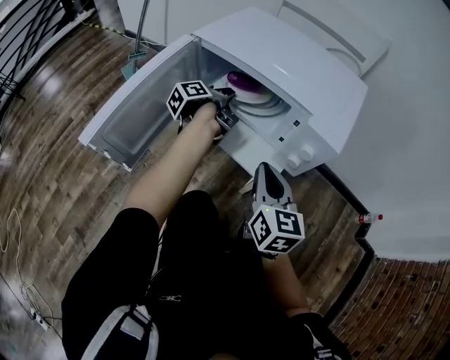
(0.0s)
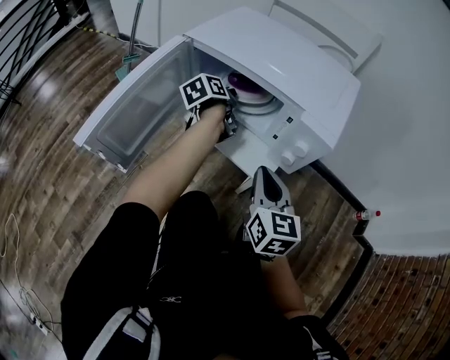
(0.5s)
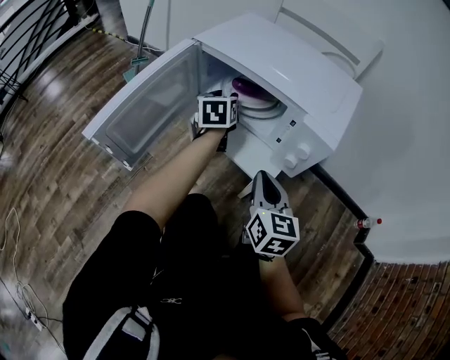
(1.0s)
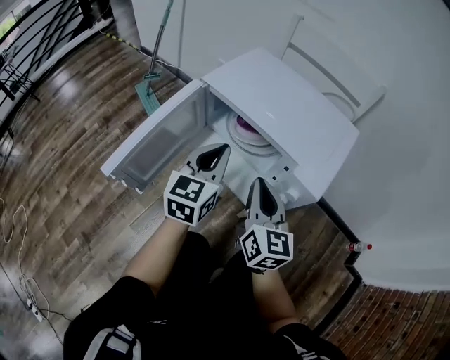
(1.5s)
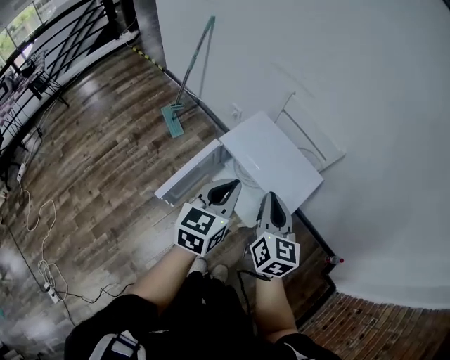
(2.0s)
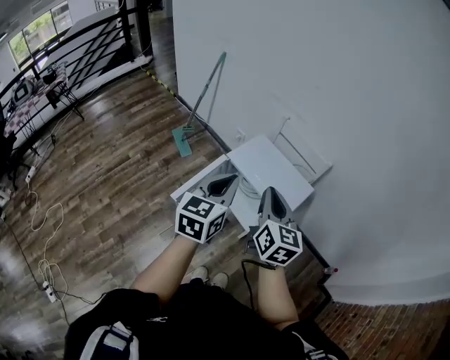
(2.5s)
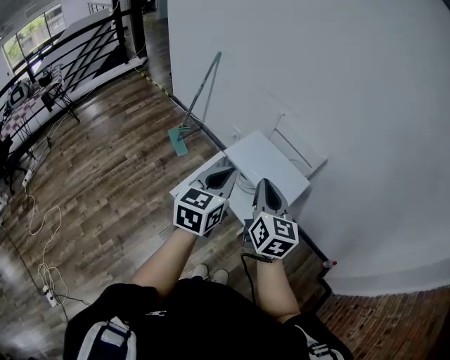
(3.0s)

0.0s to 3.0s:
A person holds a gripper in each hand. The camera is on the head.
0.0s to 1.5s: The right gripper is displaced upward by roughly 10 cm.
1.5s to 3.0s: The right gripper is displaced upward by some 40 cm.

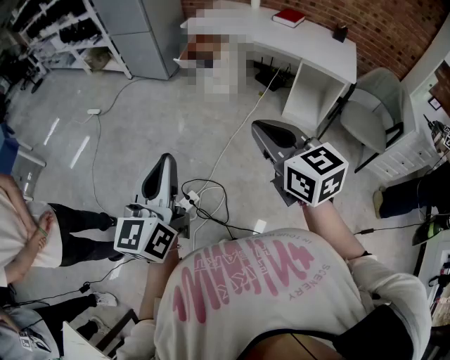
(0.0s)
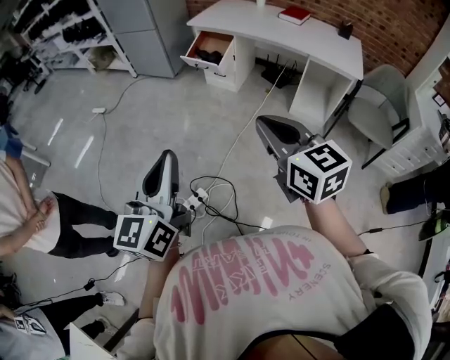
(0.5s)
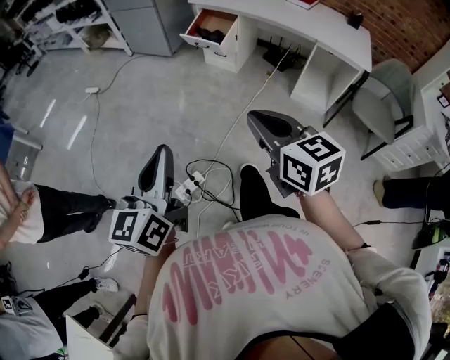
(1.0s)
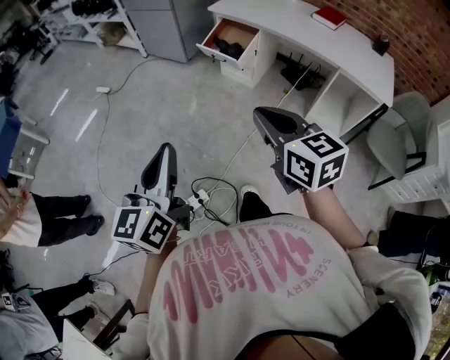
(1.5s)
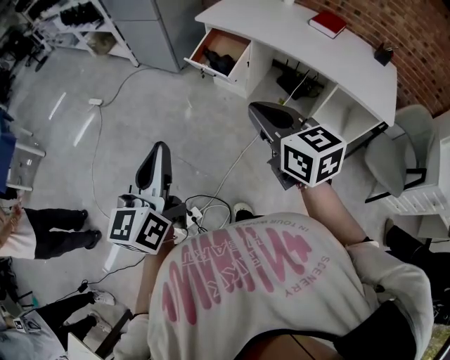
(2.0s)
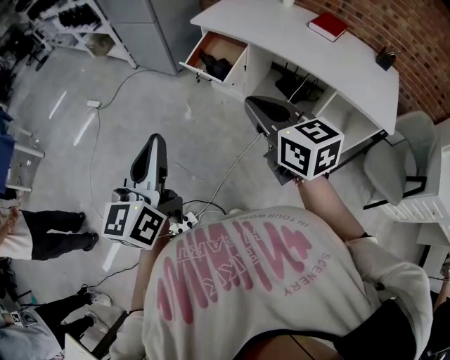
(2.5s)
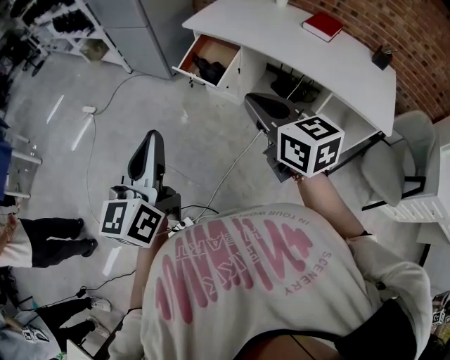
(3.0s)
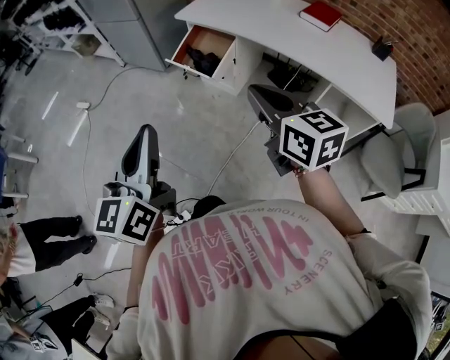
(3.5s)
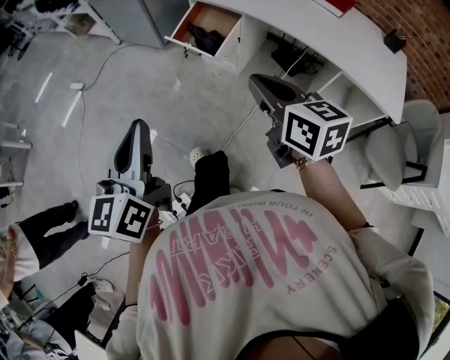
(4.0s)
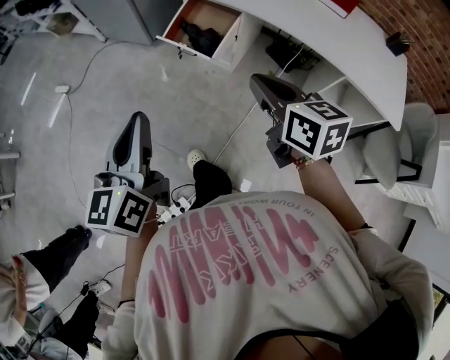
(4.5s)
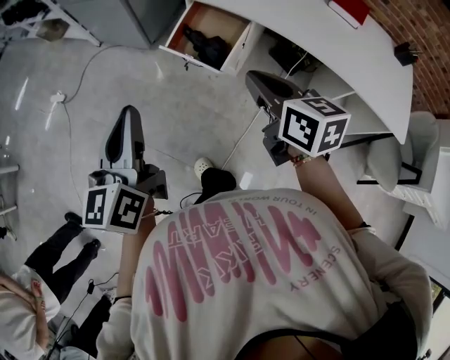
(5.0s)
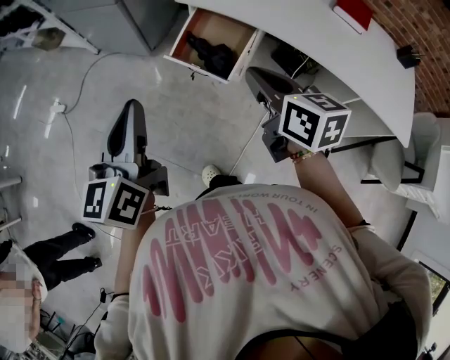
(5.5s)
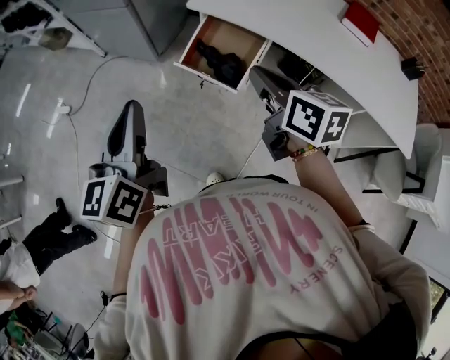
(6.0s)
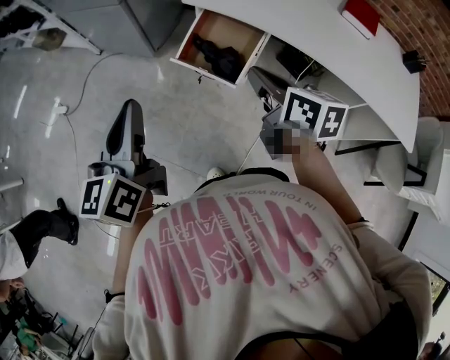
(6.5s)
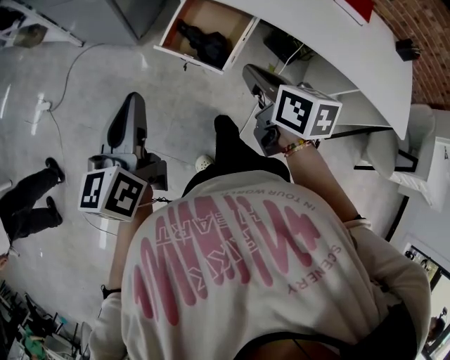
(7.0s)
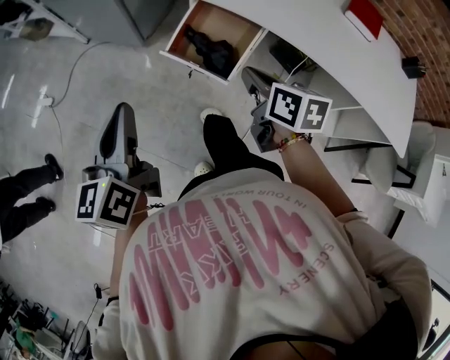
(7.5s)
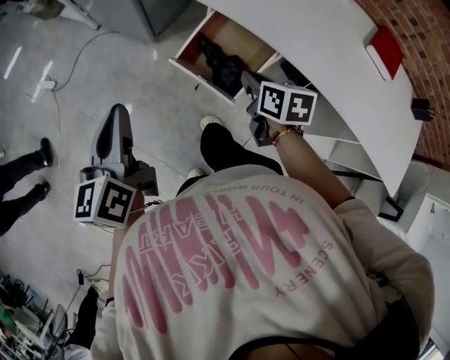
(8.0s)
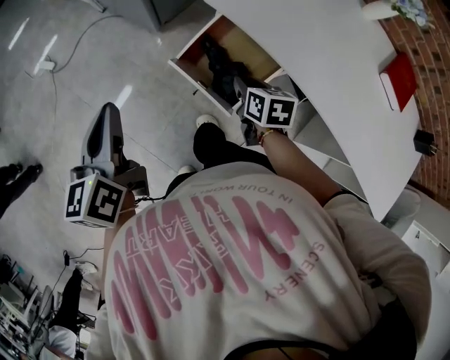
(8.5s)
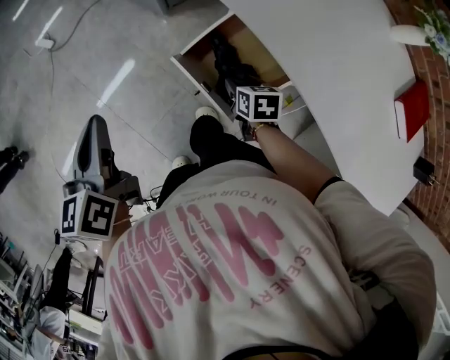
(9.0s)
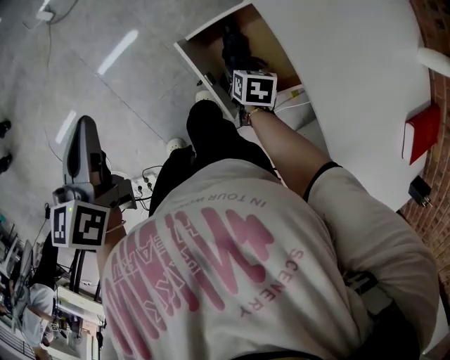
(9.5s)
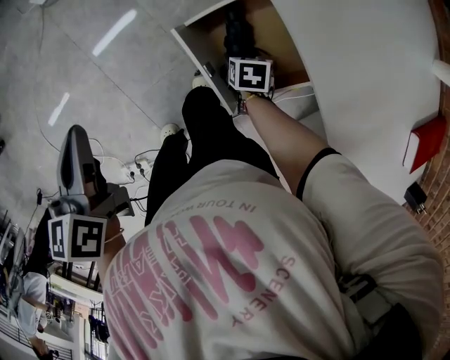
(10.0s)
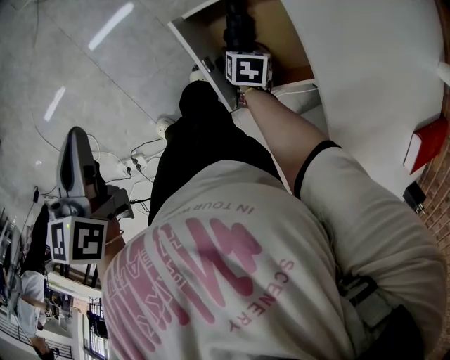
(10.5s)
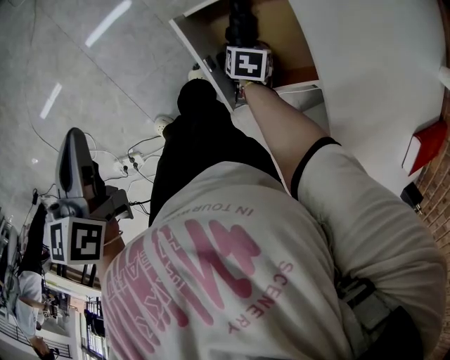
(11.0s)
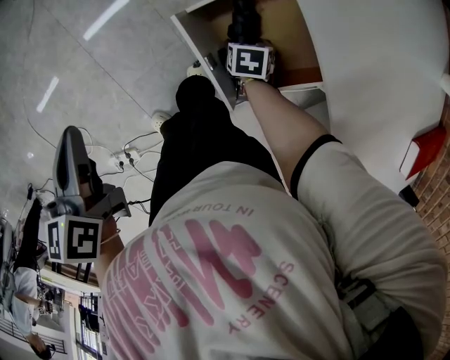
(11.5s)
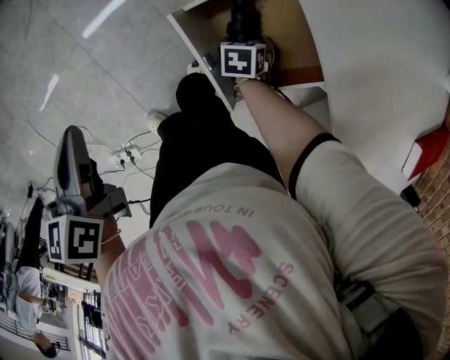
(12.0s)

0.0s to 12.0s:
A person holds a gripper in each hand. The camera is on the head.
0.0s to 2.0s: The grippers both shift forward by roughly 30 cm.
2.0s to 4.0s: The right gripper moves forward, to the right and downward, roughly 15 cm. The left gripper goes about 10 cm forward.
4.0s to 6.0s: Both grippers move forward, approximately 35 cm.
6.0s to 8.0s: The right gripper moves downward and forward, about 20 cm, and turns by roughly 20 degrees. Meanwhile the left gripper is displaced forward and downward by about 15 cm.
8.0s to 10.0s: The right gripper heads downward and forward, covering some 35 cm, tips its fingers downward by approximately 30 degrees, and opens up; the left gripper moves downward and forward, roughly 15 cm, and rotates approximately 30 degrees.
10.0s to 12.0s: The left gripper moves downward, some 5 cm.

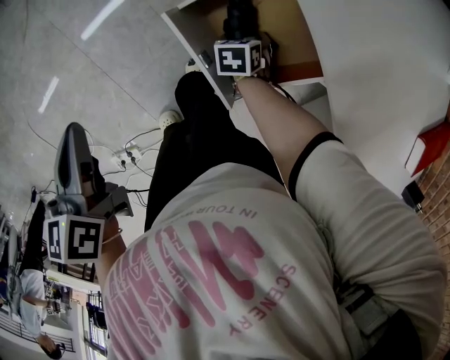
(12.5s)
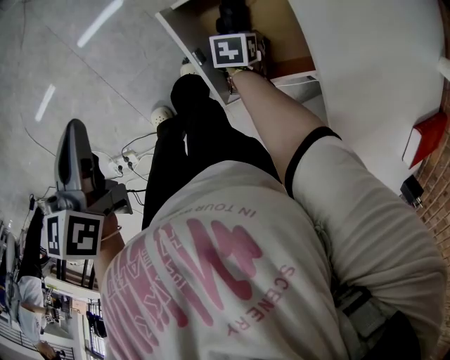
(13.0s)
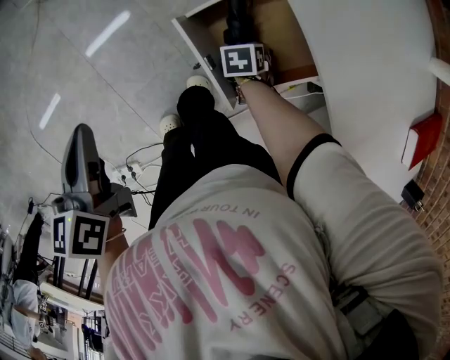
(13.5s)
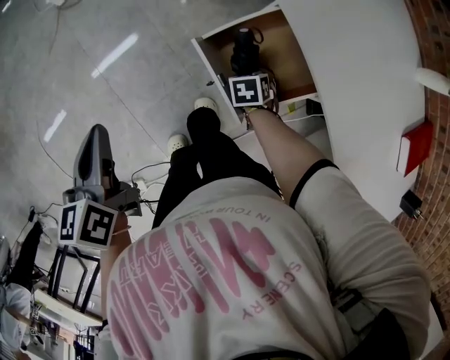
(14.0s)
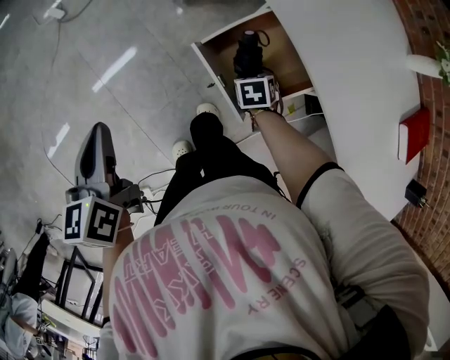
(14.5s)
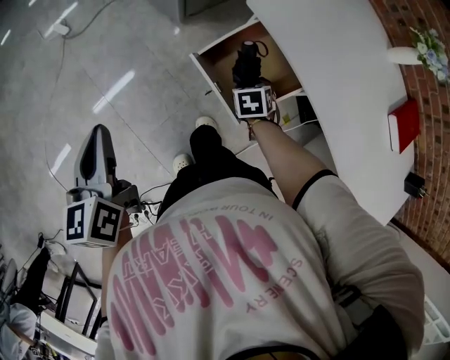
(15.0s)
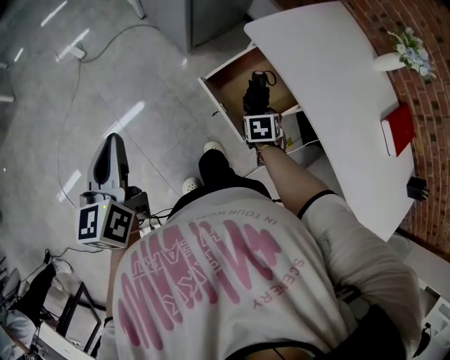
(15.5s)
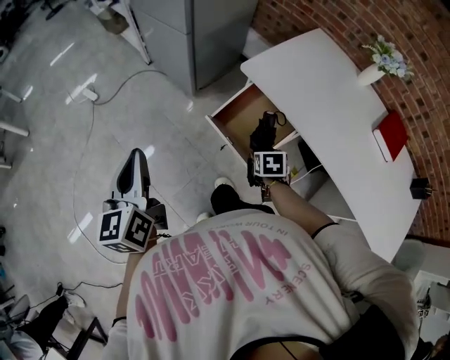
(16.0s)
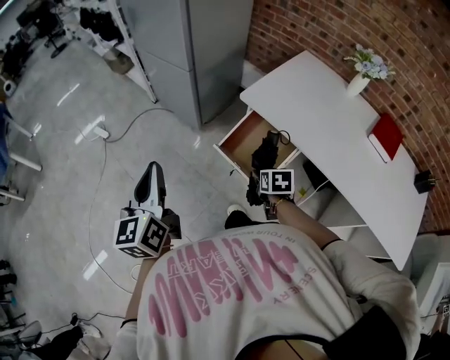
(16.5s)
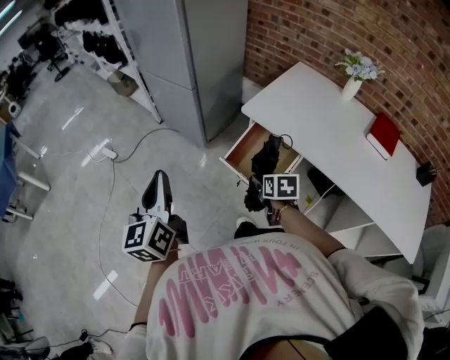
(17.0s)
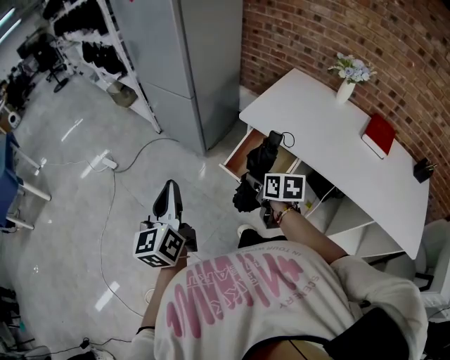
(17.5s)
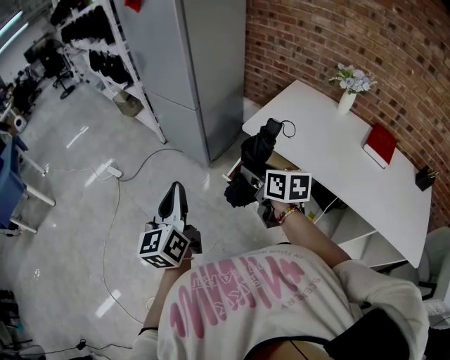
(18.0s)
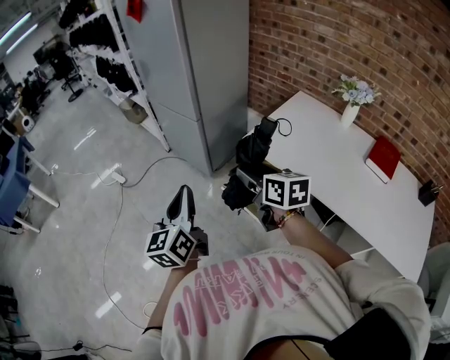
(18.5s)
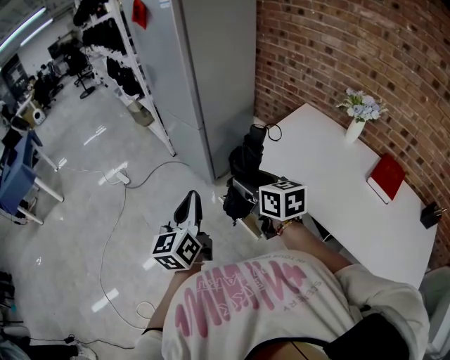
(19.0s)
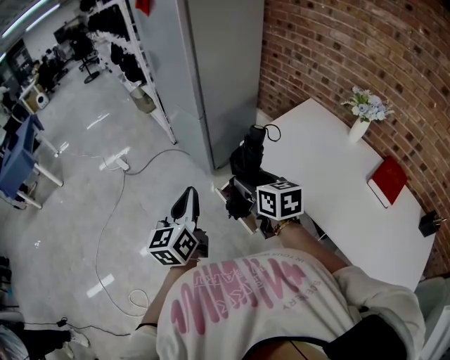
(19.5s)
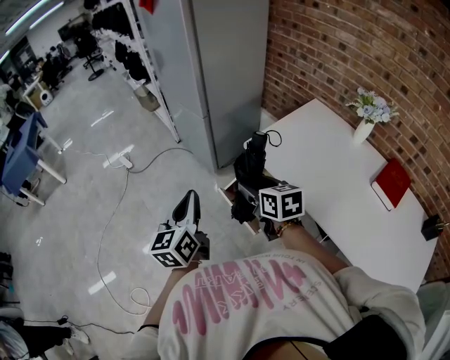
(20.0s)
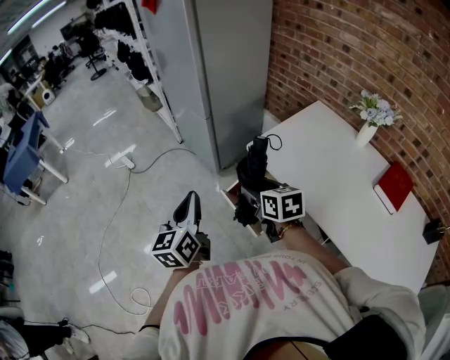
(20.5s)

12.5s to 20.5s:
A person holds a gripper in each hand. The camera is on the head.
12.5s to 14.5s: The left gripper goes some 5 cm upward. The right gripper is displaced upward by some 10 cm.
14.5s to 16.5s: The left gripper moves upward, roughly 15 cm, and rotates roughly 30 degrees; the right gripper moves upward and backward, about 25 cm, and rotates some 30 degrees.
16.5s to 18.5s: The left gripper heads to the right, covering approximately 5 cm. The right gripper heads upward, covering some 25 cm, and tips its fingers upward by approximately 40 degrees.
18.5s to 20.5s: The left gripper moves to the right, roughly 5 cm; the right gripper goes about 5 cm downward.

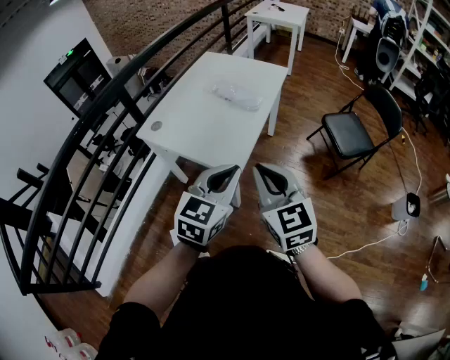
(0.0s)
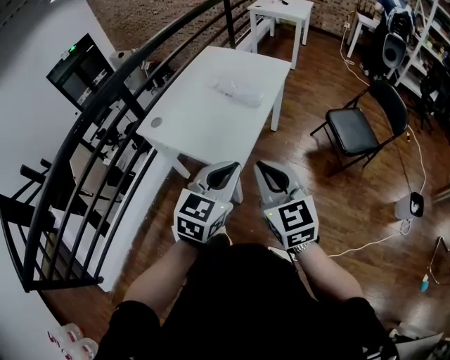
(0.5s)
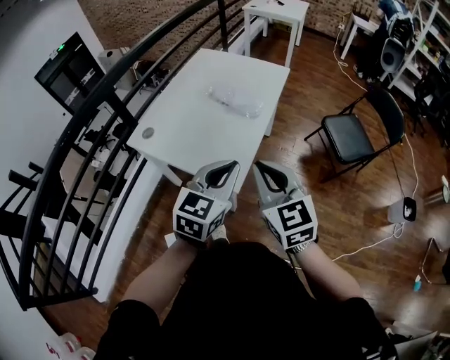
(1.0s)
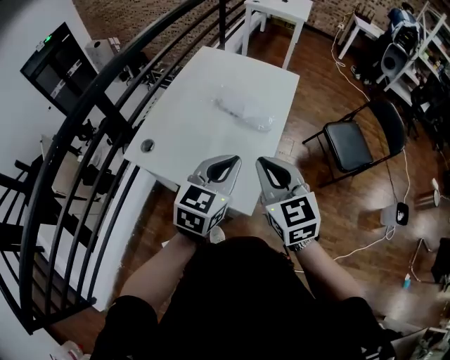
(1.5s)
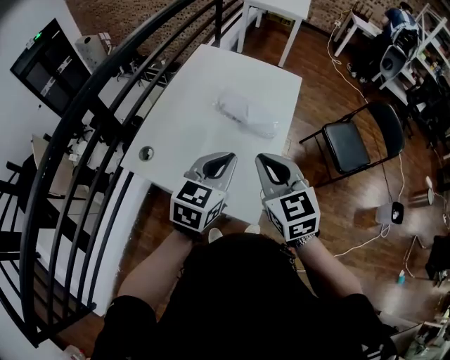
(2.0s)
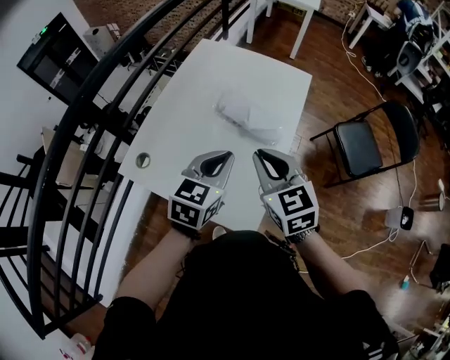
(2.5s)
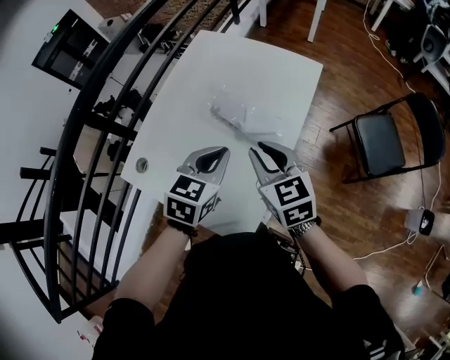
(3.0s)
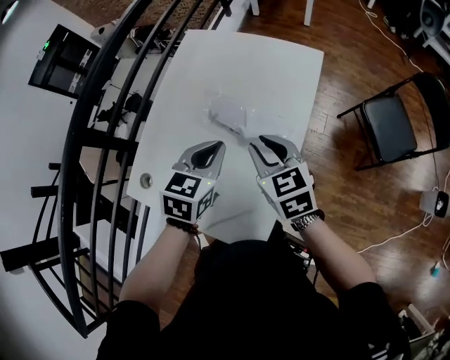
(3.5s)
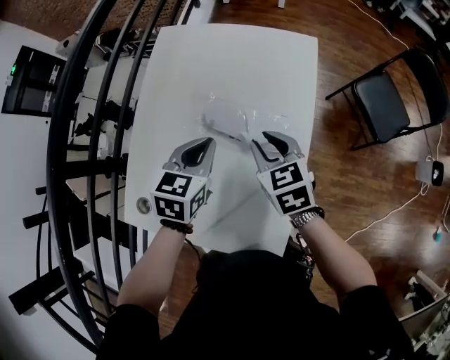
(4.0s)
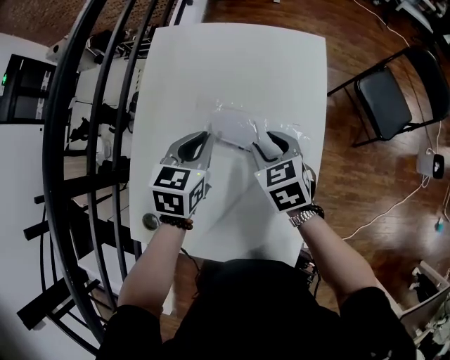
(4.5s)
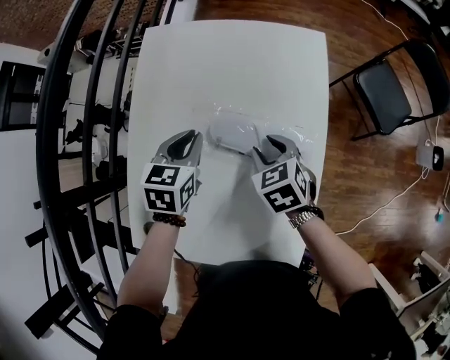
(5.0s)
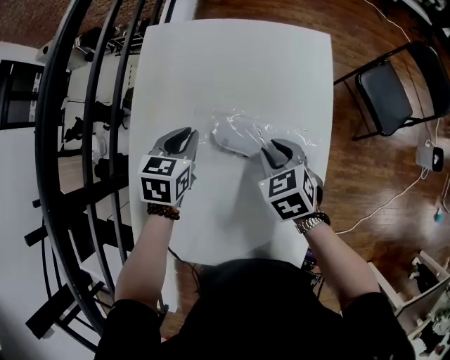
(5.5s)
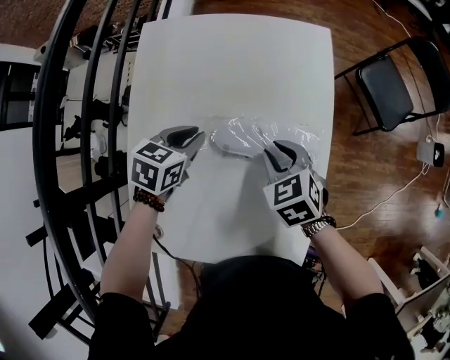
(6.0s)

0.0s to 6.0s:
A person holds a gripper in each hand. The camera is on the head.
0.0s to 2.0s: Both grippers travel together forward and to the left, about 30 cm.
2.0s to 4.0s: Both grippers move forward and downward, roughly 25 cm. The right gripper swivels approximately 20 degrees, and opens up. Meanwhile the left gripper swivels roughly 20 degrees.
4.0s to 6.0s: The right gripper travels downward by some 5 cm, while the left gripper is displaced downward, to the left and forward by some 15 cm, and changes its angle by approximately 20 degrees.
